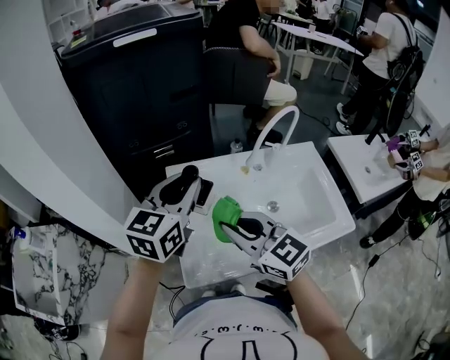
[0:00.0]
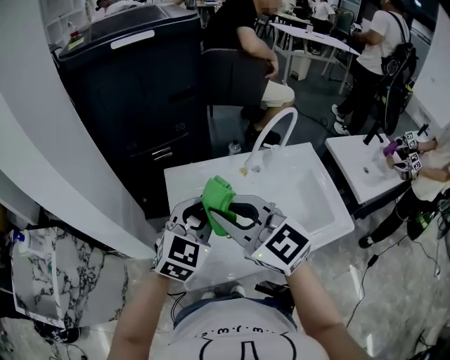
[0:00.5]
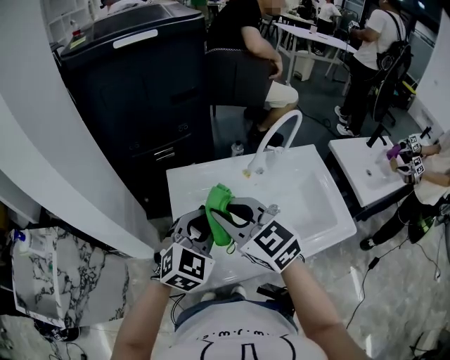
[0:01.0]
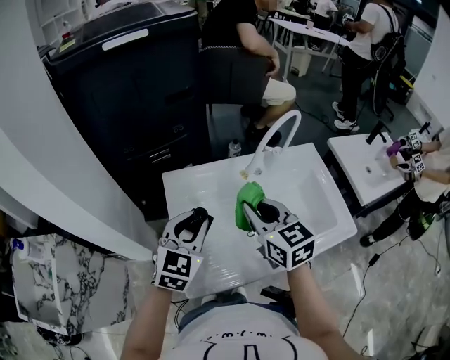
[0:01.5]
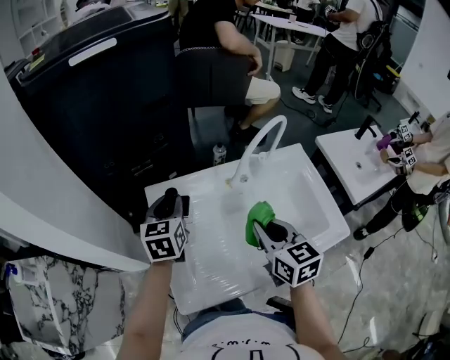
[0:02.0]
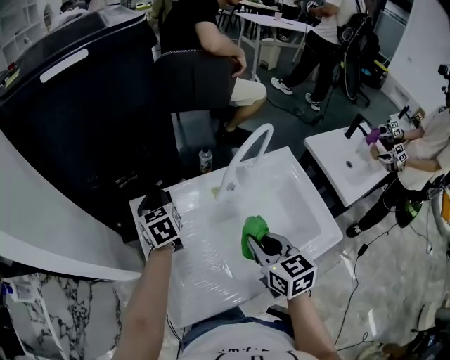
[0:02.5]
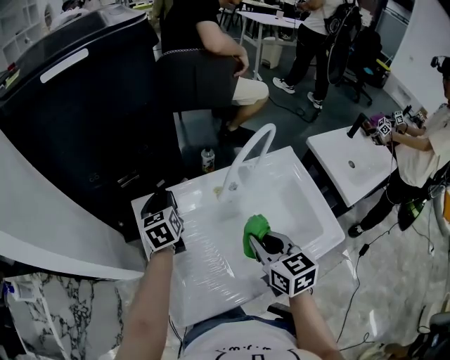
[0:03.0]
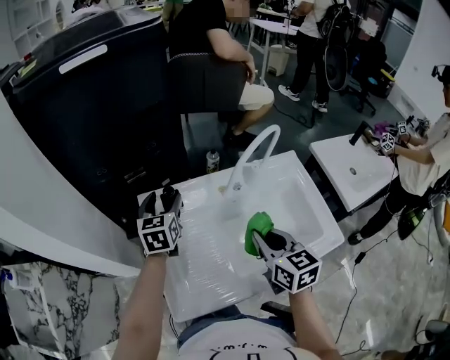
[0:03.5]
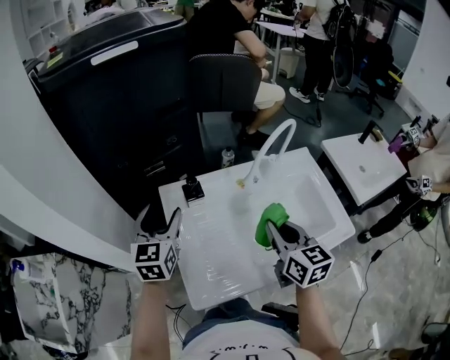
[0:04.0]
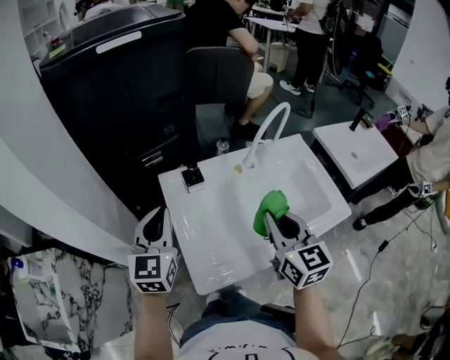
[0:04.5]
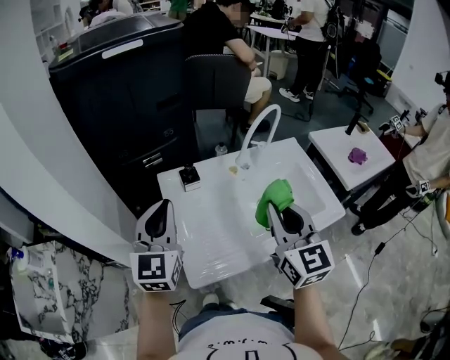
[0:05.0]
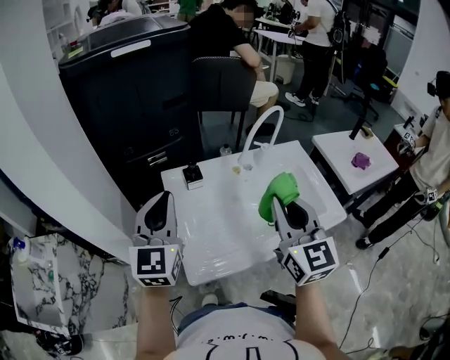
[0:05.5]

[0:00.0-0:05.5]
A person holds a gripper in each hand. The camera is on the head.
0:00.0 to 0:02.0: The right gripper heads to the right and forward, covering roughly 15 cm, and rotates about 40 degrees; the left gripper shifts some 15 cm downward and forward, and rotates some 20 degrees.
0:02.0 to 0:03.5: The left gripper opens its fingers.
0:03.5 to 0:05.5: The left gripper is displaced backward and upward by about 25 cm, swivels roughly 30 degrees, and closes up. Meanwhile the right gripper goes about 15 cm upward and backward, and changes its angle by some 30 degrees.

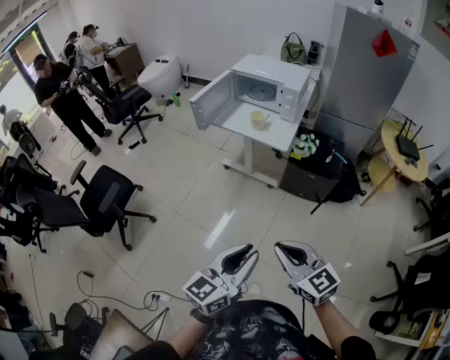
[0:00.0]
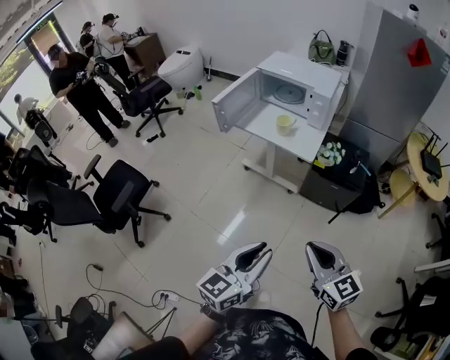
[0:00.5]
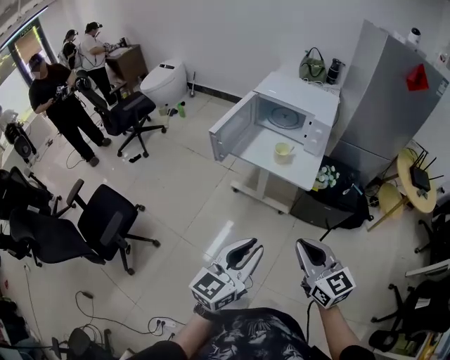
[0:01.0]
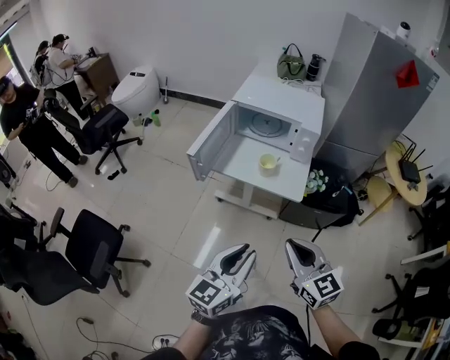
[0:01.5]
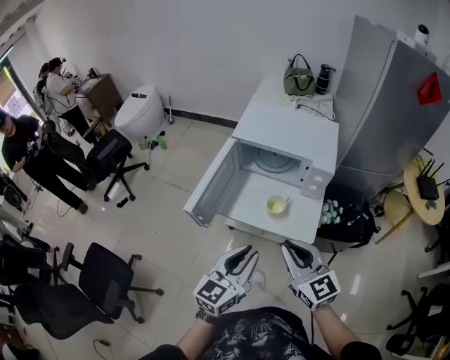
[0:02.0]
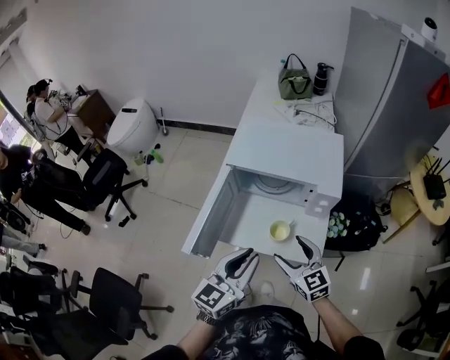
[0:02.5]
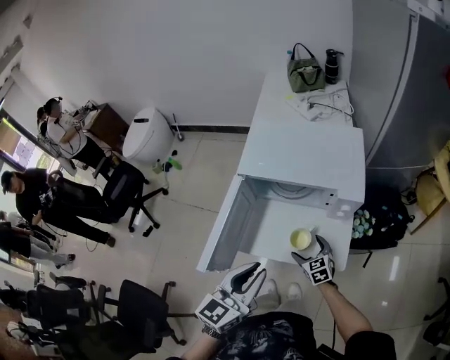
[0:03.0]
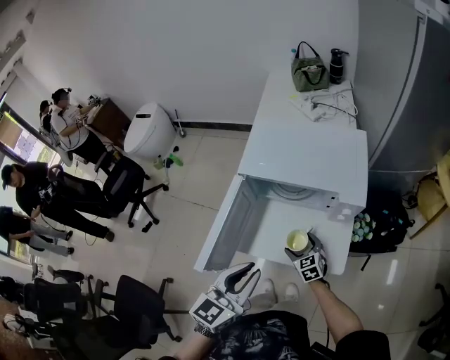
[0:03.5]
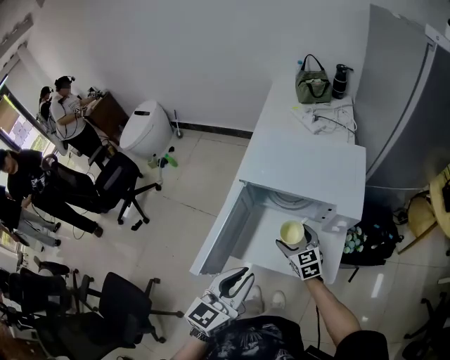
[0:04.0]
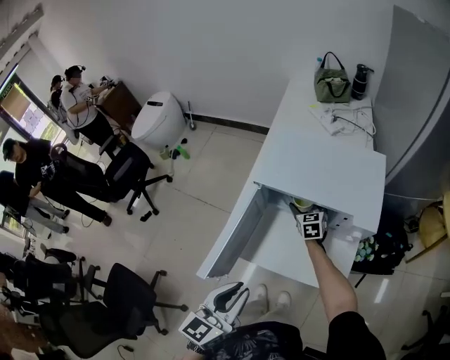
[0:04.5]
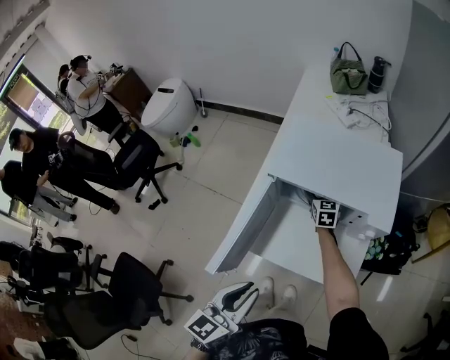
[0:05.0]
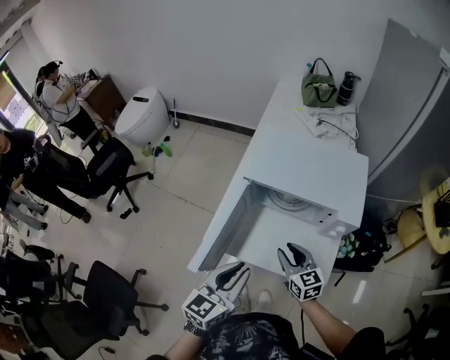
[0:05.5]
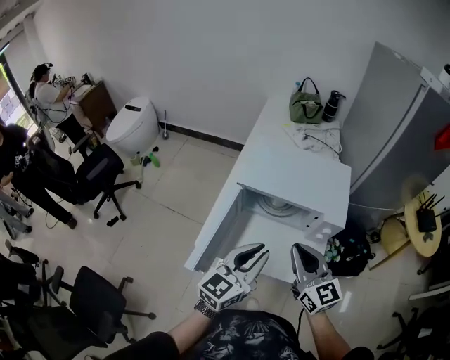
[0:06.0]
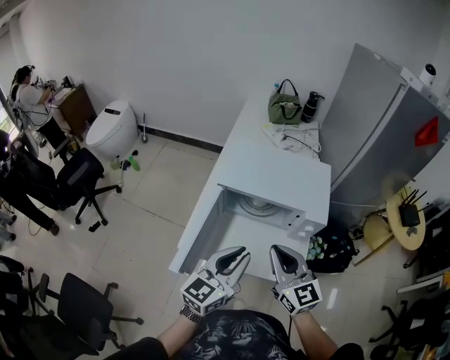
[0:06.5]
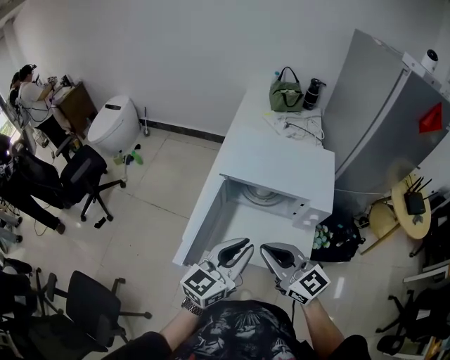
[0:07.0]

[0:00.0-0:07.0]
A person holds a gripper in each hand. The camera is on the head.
0:00.0 to 0:02.0: The two grippers travel together, forward, about 50 cm.
0:02.0 to 0:03.5: The right gripper moves downward and forward, approximately 40 cm, changes its angle by approximately 30 degrees, and opens up; the left gripper goes some 15 cm forward.
0:03.5 to 0:05.0: The right gripper goes about 25 cm forward, while the left gripper moves roughly 5 cm.
0:05.0 to 0:07.0: The left gripper shifts roughly 5 cm upward. Meanwhile the right gripper goes roughly 50 cm backward and upward, swivels about 40 degrees, and closes its fingers.

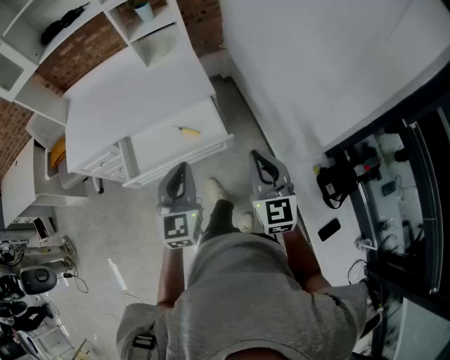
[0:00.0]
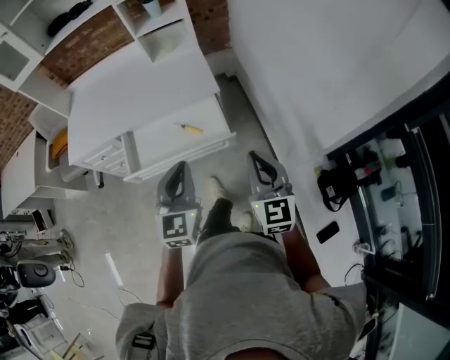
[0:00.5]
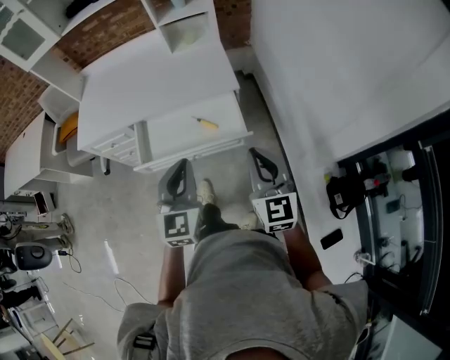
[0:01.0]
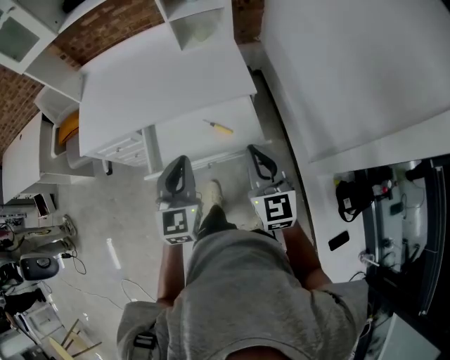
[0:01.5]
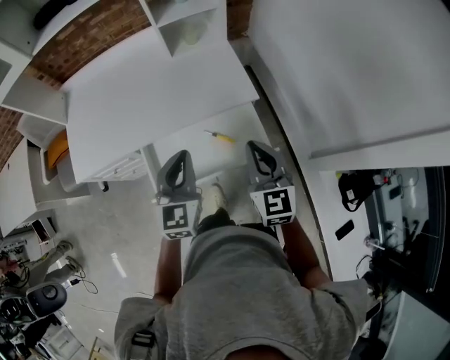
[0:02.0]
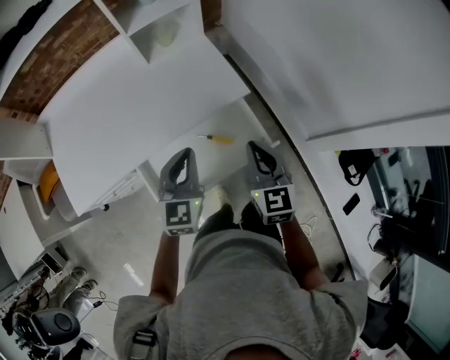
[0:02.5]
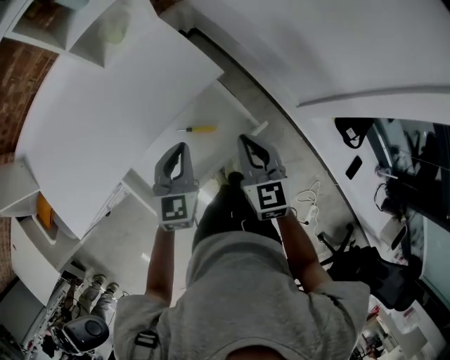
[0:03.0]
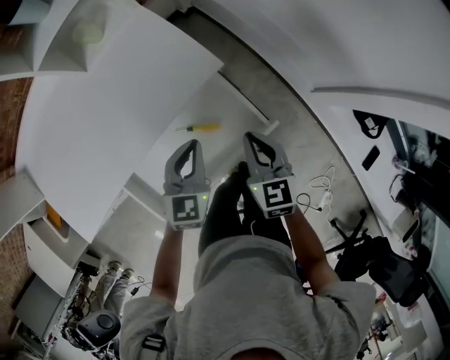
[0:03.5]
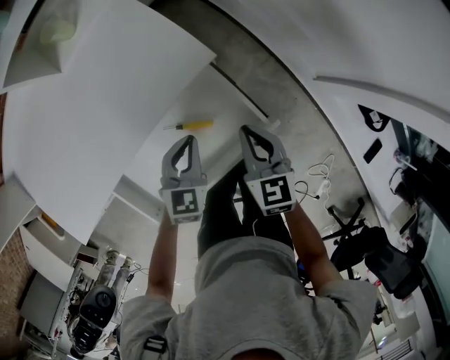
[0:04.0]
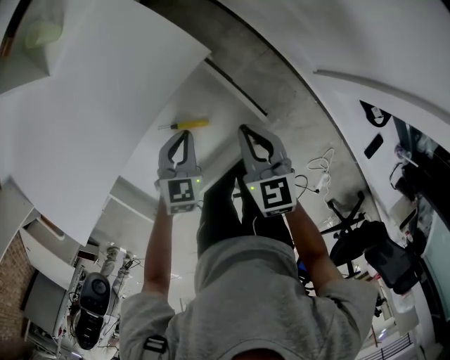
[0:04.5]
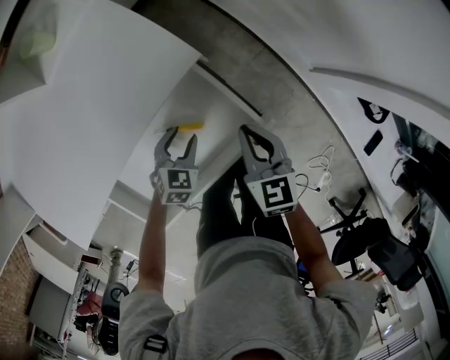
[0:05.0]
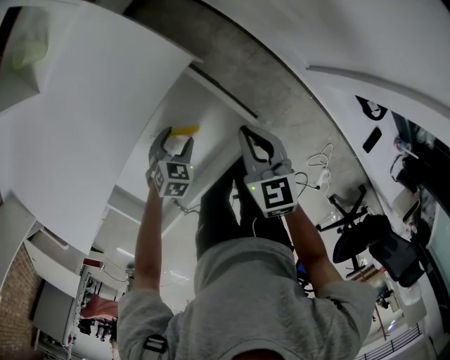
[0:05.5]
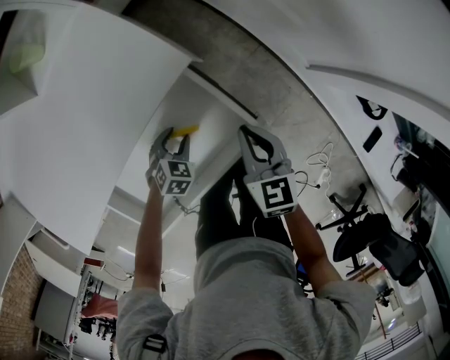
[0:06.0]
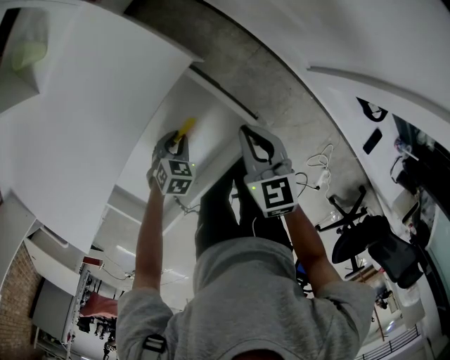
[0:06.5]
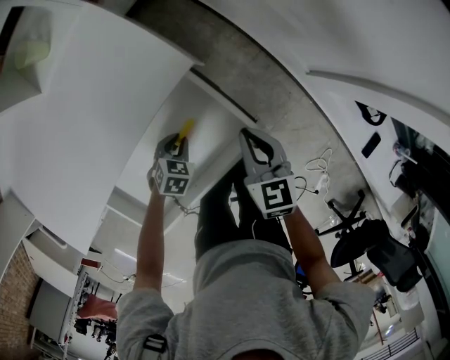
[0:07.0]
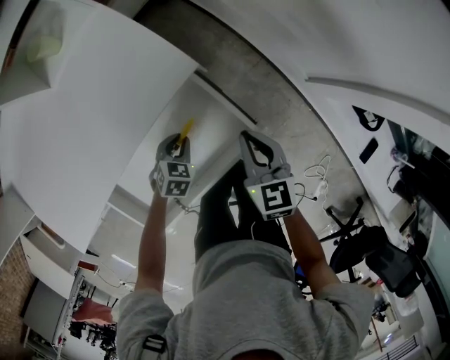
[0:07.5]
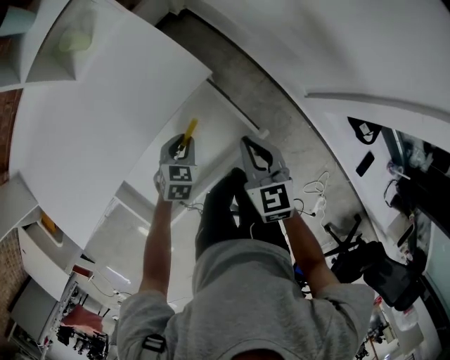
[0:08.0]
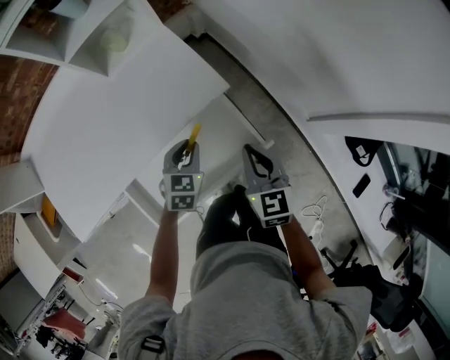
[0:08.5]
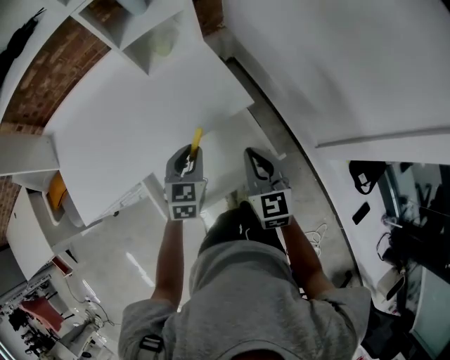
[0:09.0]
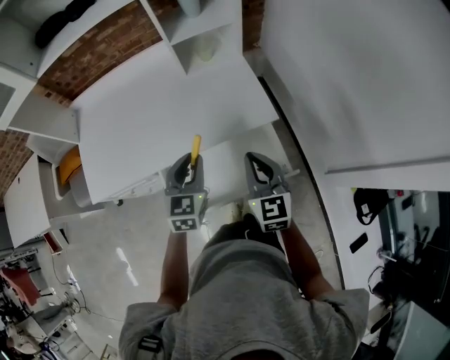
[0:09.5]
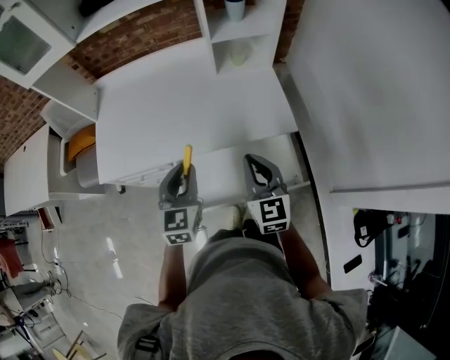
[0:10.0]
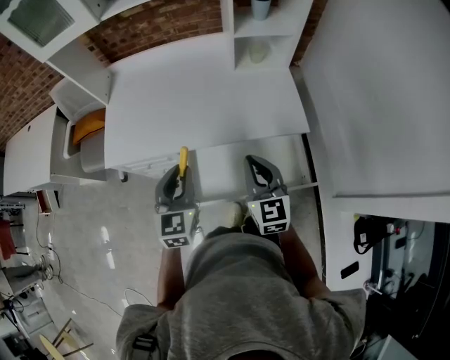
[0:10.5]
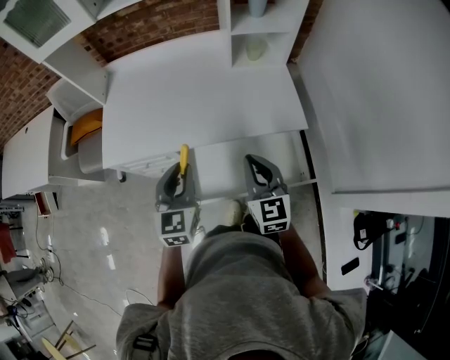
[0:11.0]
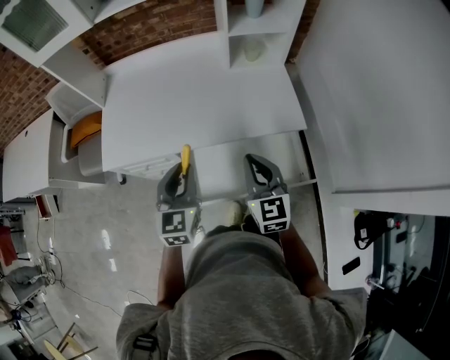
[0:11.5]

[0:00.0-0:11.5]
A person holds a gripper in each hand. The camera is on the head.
0:00.0 to 0:02.0: The left gripper shifts approximately 30 cm forward and to the left; the right gripper is displaced to the left and forward by approximately 30 cm.
0:02.0 to 0:04.0: The grippers both shift downward and forward by about 30 cm. The left gripper swivels roughly 40 degrees. The right gripper rotates some 30 degrees.
0:04.0 to 0:06.0: The left gripper travels downward by about 15 cm, rotates approximately 30 degrees, and opens its fingers, while the right gripper ends up some 5 cm from where it was.
0:06.0 to 0:07.5: The left gripper closes its fingers.
0:07.5 to 0:09.5: The right gripper shifts some 25 cm upward, and swivels about 30 degrees; the left gripper is displaced upward by roughly 40 cm, and points its fingers about 40 degrees further upward.
0:09.5 to 0:11.5: The left gripper travels to the left and backward by roughly 15 cm; the right gripper shifts some 15 cm to the left.

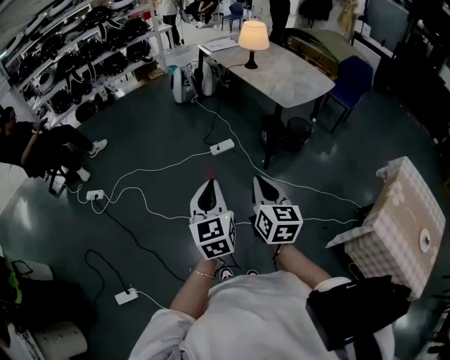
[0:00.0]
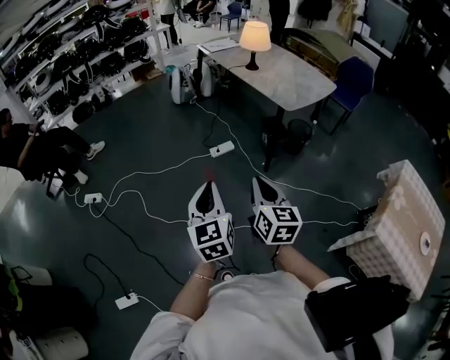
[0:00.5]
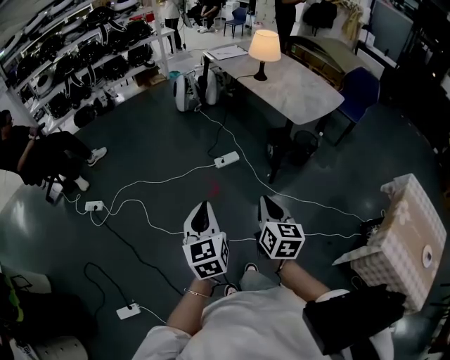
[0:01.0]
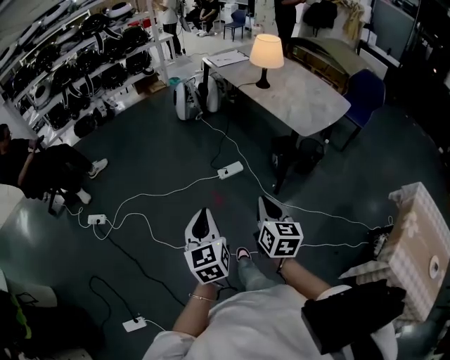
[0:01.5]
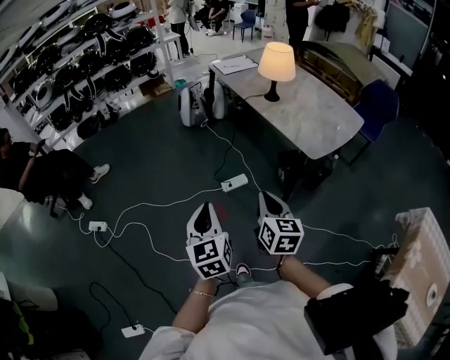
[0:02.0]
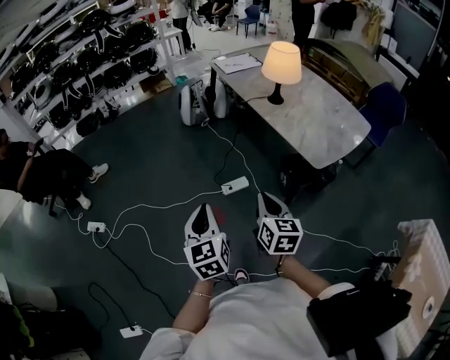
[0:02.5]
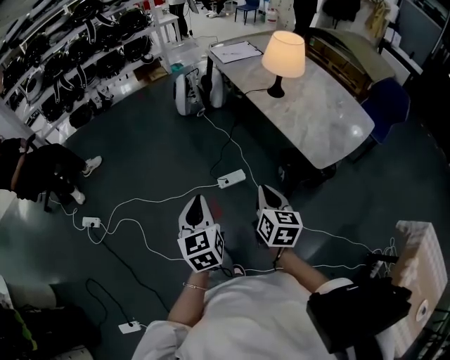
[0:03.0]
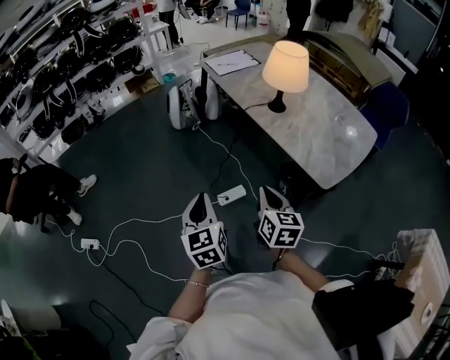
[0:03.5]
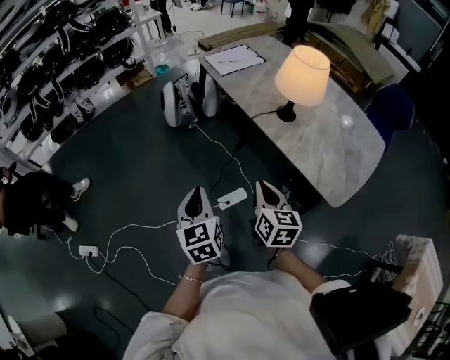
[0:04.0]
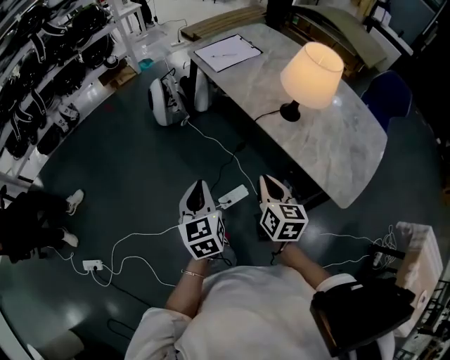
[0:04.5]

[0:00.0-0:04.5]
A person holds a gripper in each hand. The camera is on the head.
0:00.0 to 0:02.0: The grippers both shift forward by approximately 30 cm.
0:02.0 to 0:04.5: The two grippers travel together, forward, some 50 cm.
